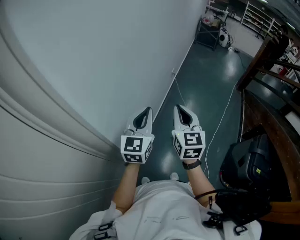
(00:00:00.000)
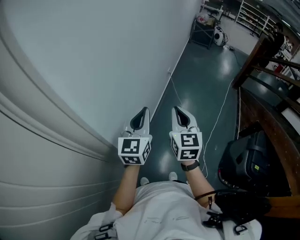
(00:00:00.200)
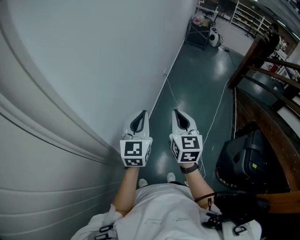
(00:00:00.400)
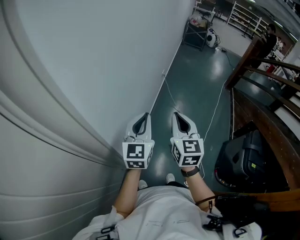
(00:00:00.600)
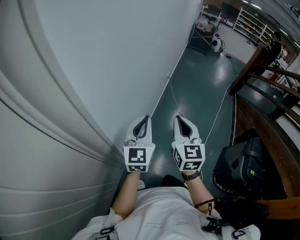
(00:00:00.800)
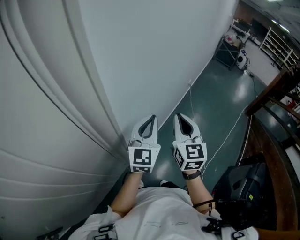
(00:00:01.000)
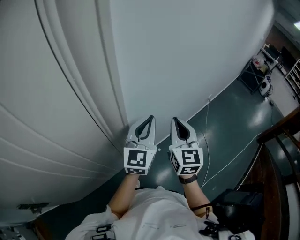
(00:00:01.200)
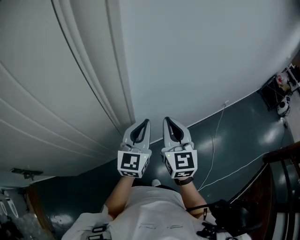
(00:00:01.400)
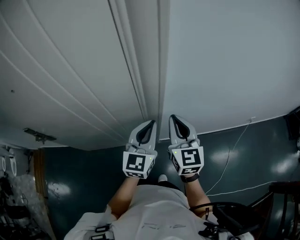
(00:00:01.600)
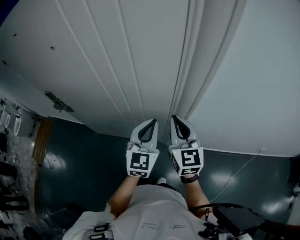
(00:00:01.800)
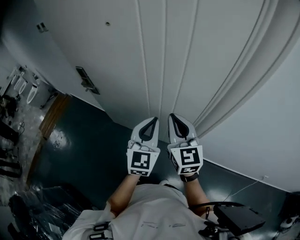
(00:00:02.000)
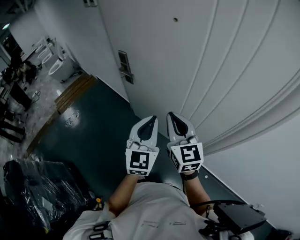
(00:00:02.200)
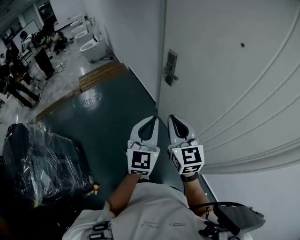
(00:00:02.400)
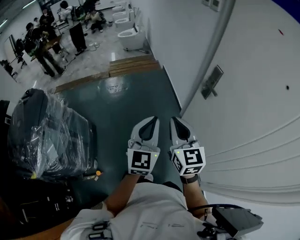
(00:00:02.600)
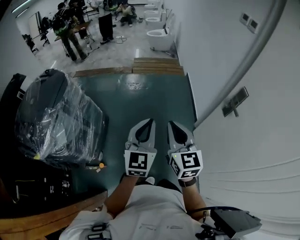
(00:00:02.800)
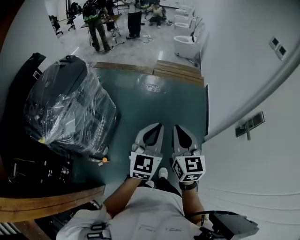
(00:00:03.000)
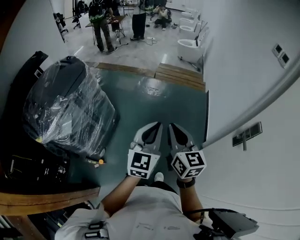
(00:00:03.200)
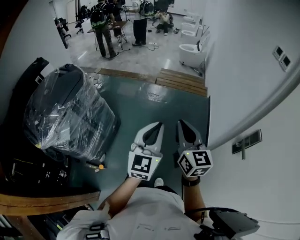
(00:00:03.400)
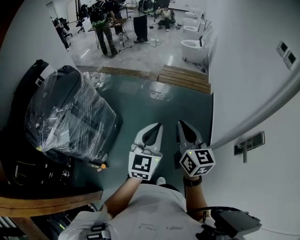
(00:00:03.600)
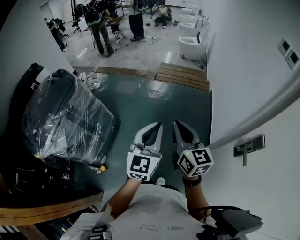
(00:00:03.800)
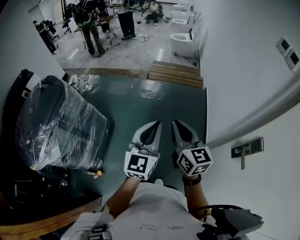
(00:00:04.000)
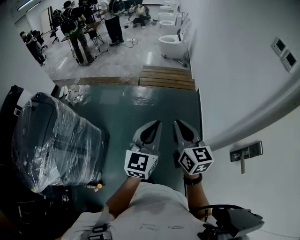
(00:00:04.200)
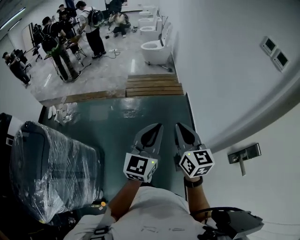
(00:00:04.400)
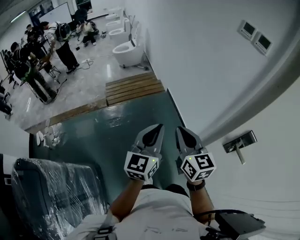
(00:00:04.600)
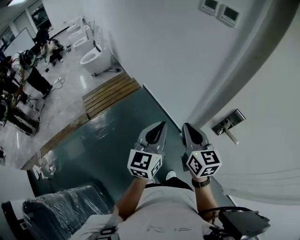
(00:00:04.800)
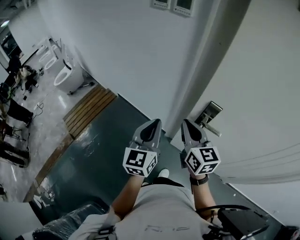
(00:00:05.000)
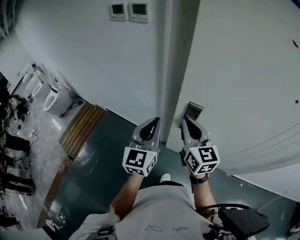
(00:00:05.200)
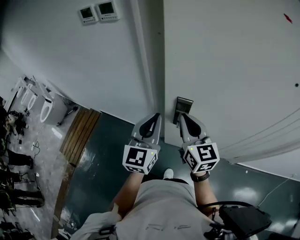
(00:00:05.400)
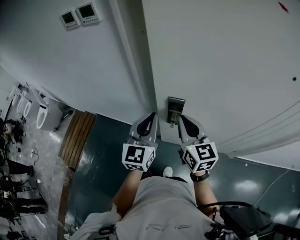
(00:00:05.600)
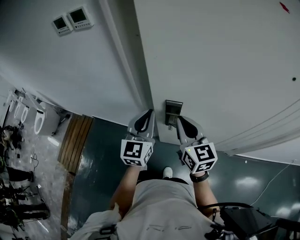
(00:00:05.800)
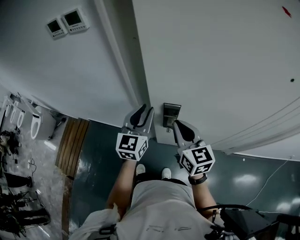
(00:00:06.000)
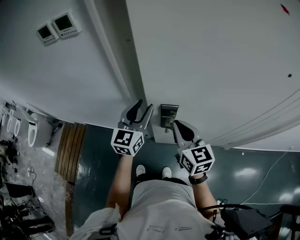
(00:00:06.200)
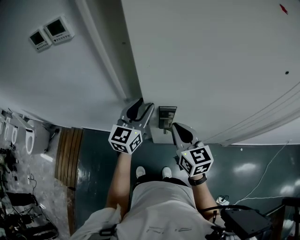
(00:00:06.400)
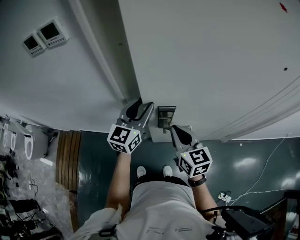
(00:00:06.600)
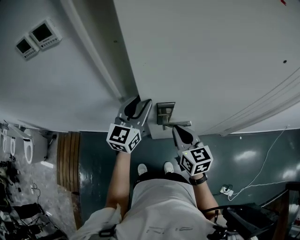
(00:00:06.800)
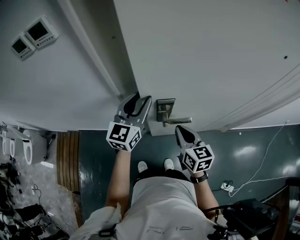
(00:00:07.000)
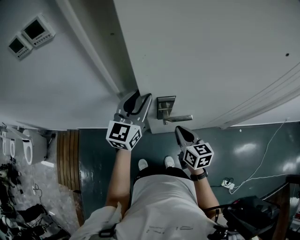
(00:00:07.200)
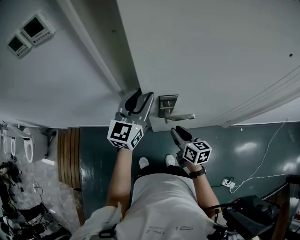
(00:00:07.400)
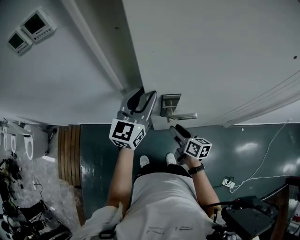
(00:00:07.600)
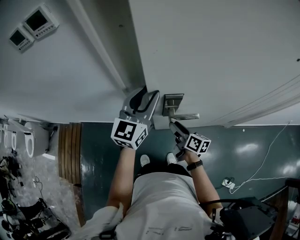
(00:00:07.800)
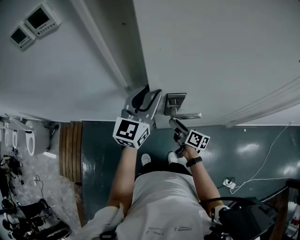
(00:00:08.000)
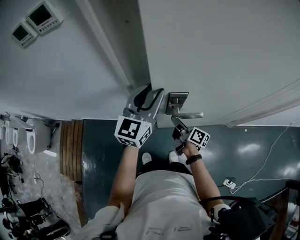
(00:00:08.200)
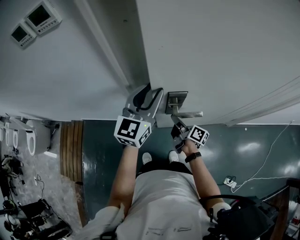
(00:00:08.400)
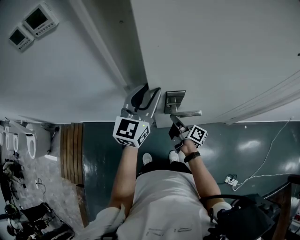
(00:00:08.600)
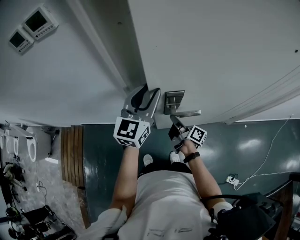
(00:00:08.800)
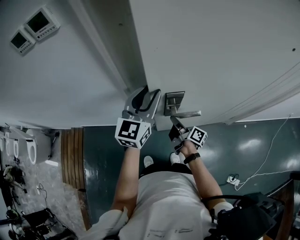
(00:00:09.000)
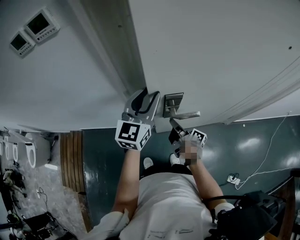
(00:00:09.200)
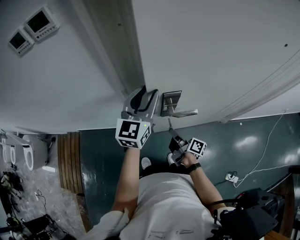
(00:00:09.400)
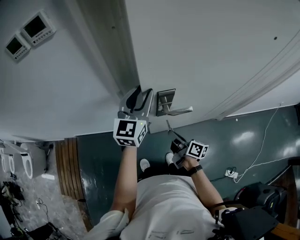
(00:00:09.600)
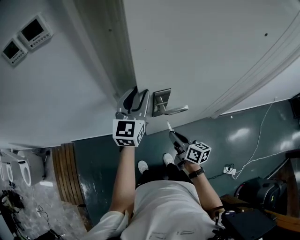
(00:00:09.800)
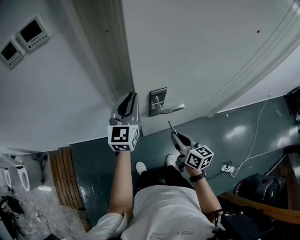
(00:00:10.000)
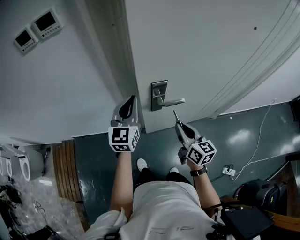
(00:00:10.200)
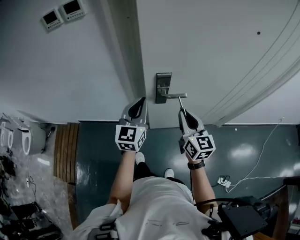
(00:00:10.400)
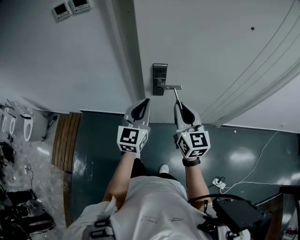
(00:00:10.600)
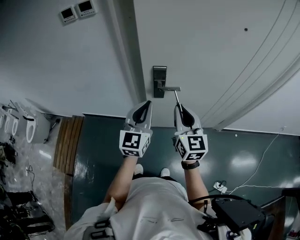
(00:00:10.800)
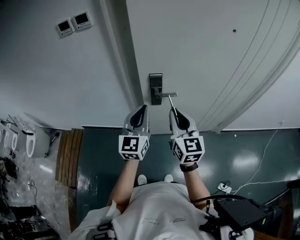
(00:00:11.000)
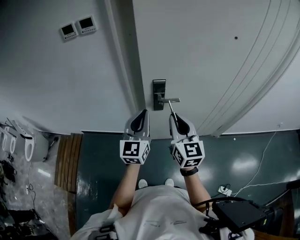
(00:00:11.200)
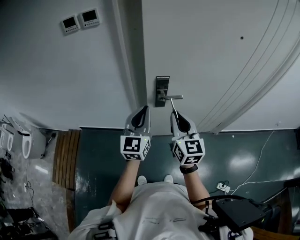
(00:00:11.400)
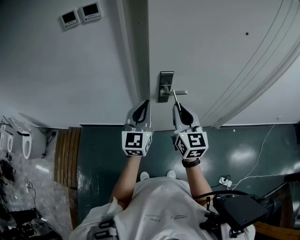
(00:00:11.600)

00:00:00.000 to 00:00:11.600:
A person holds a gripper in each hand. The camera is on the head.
00:00:00.000 to 00:00:01.400: The right gripper shifts by roughly 20 cm, and rotates about 50 degrees. Meanwhile the left gripper shifts by roughly 15 cm, and turns by approximately 40 degrees.
00:00:01.400 to 00:00:02.800: Both grippers are carried roughly 90 cm. The left gripper changes its angle by some 120 degrees, while the right gripper changes its angle by approximately 120 degrees.
00:00:02.800 to 00:00:04.400: The grippers both shift forward by approximately 35 cm.
00:00:04.400 to 00:00:05.800: The pair of grippers is taken approximately 40 cm. The left gripper swivels some 60 degrees; the right gripper rotates about 70 degrees.
00:00:05.800 to 00:00:07.200: The right gripper is displaced downward by approximately 15 cm, and rotates about 30 degrees. Meanwhile the left gripper goes roughly 10 cm forward, rotates about 20 degrees, and opens its fingers.
00:00:07.200 to 00:00:08.800: The right gripper shifts about 10 cm downward and forward, twists approximately 60 degrees clockwise, seen from behind, and opens, then closes again.
00:00:08.800 to 00:00:10.200: The right gripper is displaced upward and backward by approximately 20 cm, and rolls counterclockwise, seen from behind, by roughly 50 degrees. Meanwhile the left gripper goes about 5 cm backward, and closes.
00:00:10.200 to 00:00:11.600: The left gripper heads backward and upward, covering some 15 cm; the right gripper heads upward, covering roughly 15 cm, and rotates approximately 20 degrees.

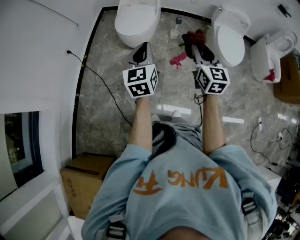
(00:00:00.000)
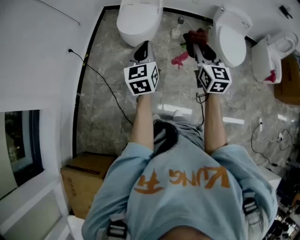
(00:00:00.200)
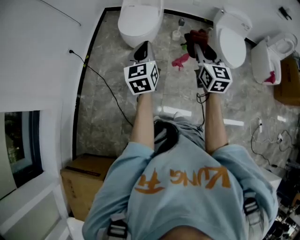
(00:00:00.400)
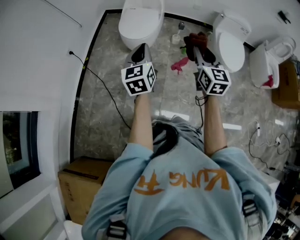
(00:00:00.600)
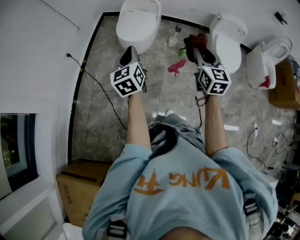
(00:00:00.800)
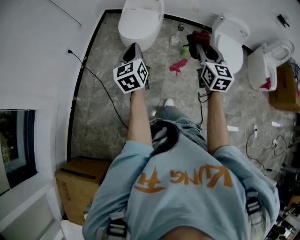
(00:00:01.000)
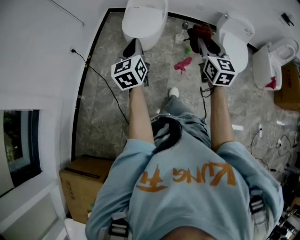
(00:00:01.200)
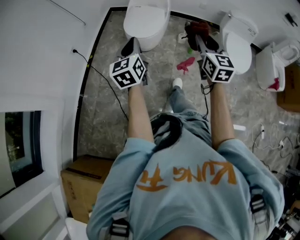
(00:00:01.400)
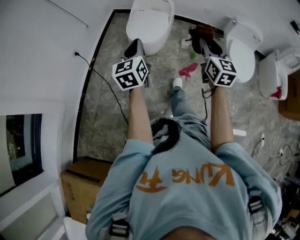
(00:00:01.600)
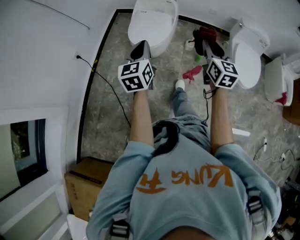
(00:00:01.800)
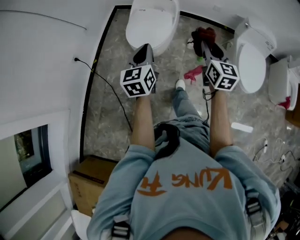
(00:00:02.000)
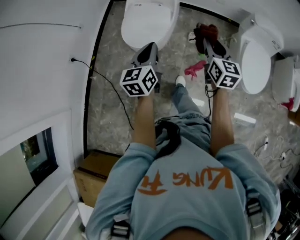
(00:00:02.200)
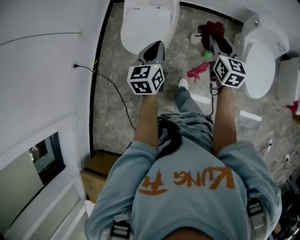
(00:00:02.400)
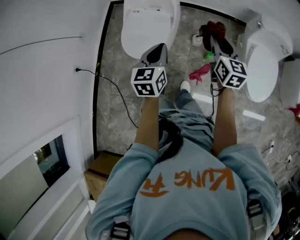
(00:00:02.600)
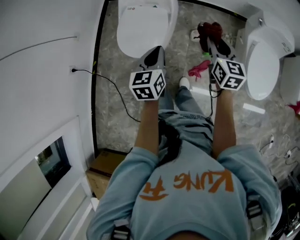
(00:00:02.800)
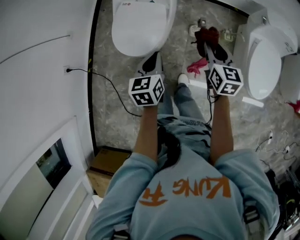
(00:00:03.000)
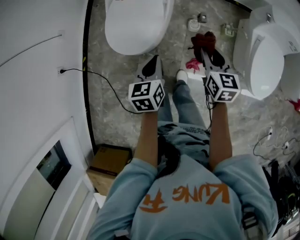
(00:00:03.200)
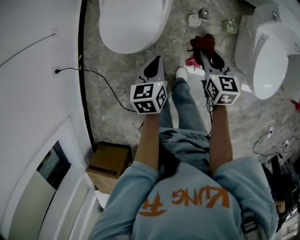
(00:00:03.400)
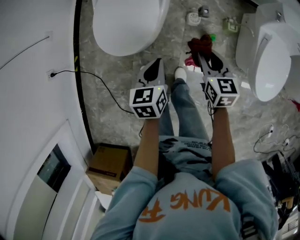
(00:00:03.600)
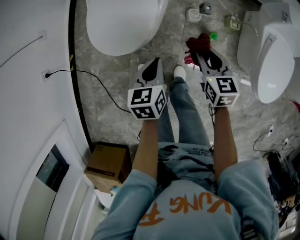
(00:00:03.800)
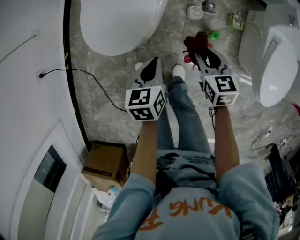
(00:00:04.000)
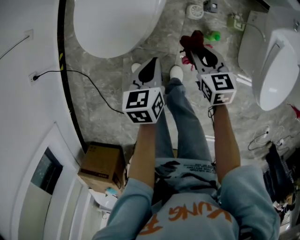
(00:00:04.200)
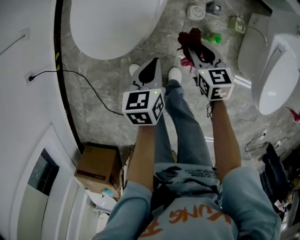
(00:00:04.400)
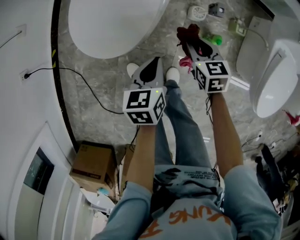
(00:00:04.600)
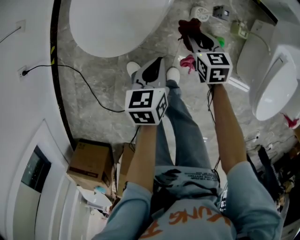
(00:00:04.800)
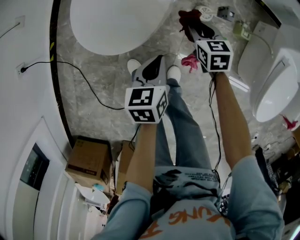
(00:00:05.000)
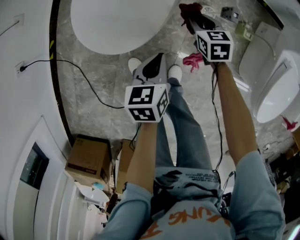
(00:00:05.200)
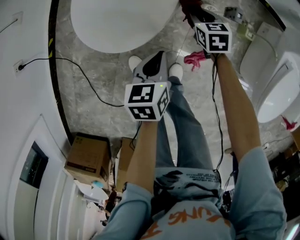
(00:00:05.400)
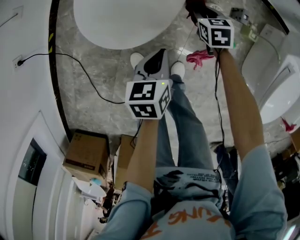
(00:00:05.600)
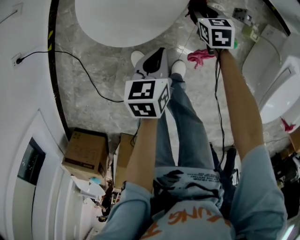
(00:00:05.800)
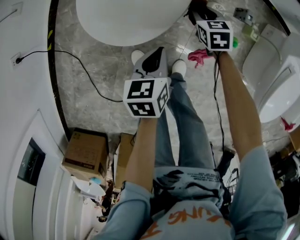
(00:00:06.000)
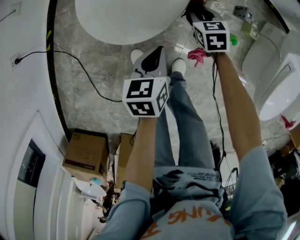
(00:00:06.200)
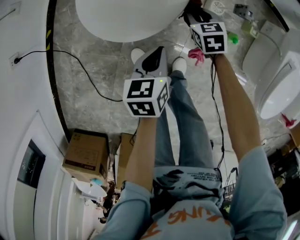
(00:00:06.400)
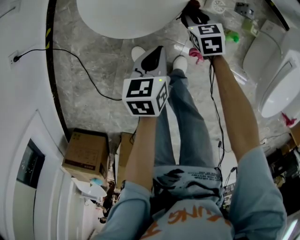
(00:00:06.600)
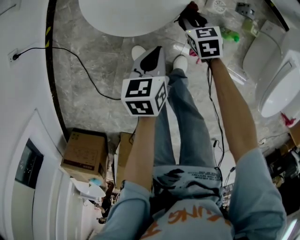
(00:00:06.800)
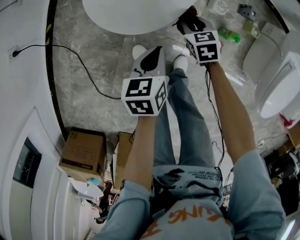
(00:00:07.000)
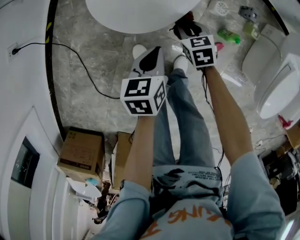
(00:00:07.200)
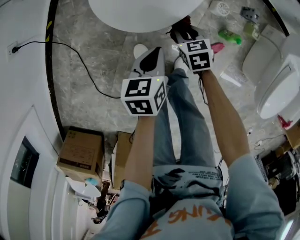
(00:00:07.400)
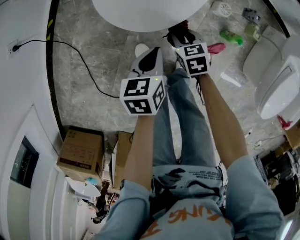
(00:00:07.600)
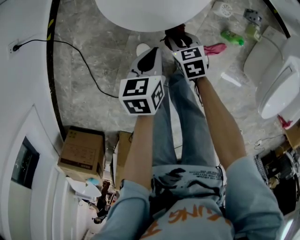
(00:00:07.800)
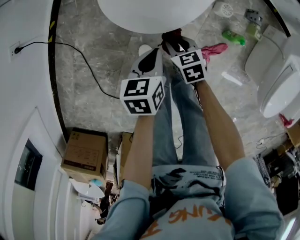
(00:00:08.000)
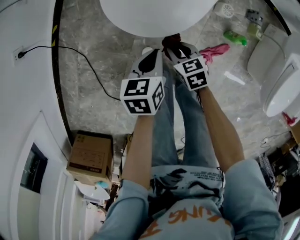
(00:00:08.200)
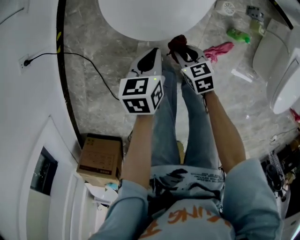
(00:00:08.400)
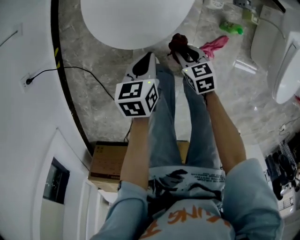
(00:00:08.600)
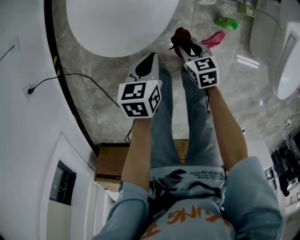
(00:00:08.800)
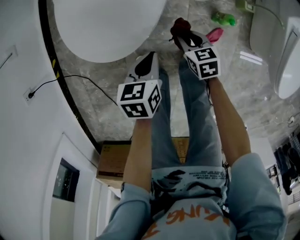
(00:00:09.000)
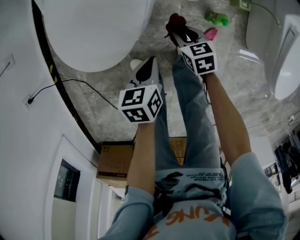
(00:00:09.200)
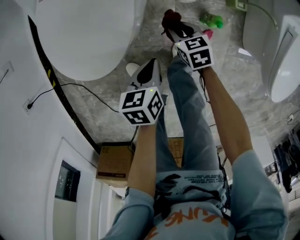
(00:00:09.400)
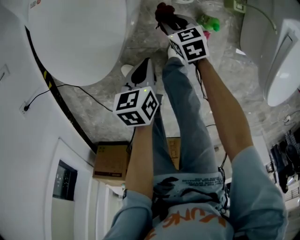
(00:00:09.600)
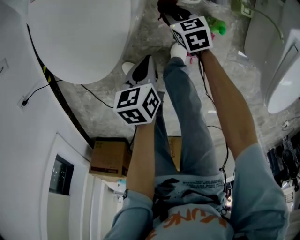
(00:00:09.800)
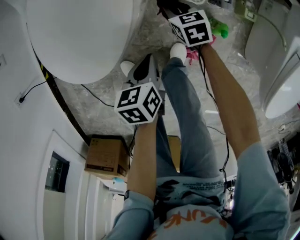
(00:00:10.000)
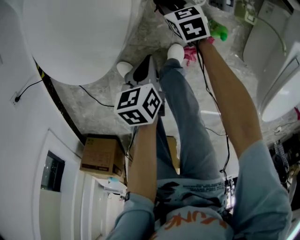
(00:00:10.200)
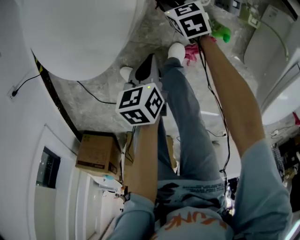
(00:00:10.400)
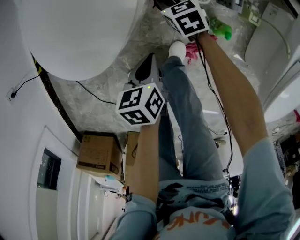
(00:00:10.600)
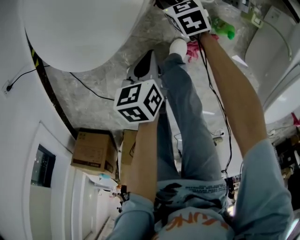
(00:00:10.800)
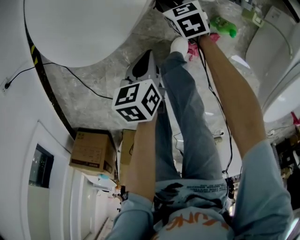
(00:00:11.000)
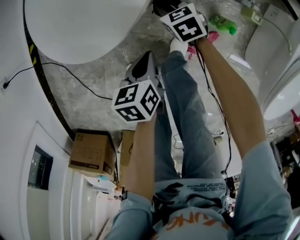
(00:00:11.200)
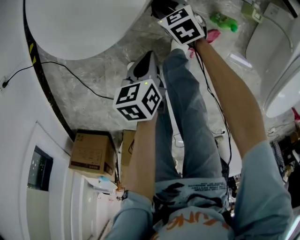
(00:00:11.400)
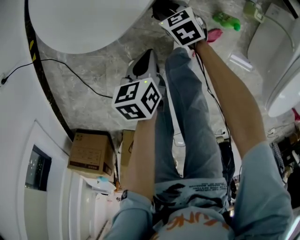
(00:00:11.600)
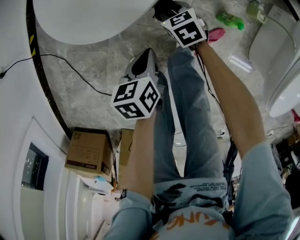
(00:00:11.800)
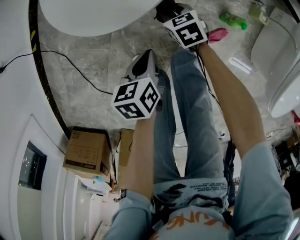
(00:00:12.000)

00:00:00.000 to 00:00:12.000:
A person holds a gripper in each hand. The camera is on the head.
00:00:00.000 to 00:00:01.600: The left gripper heads forward and to the left, covering about 15 cm. The right gripper moves forward, approximately 10 cm.
00:00:01.600 to 00:00:03.000: The right gripper travels forward and downward by about 40 cm, and swivels roughly 20 degrees; the left gripper heads forward, downward and to the right, covering roughly 40 cm, and turns by about 30 degrees.
00:00:03.000 to 00:00:04.400: The grippers both shift downward by about 30 cm. The right gripper changes its angle by approximately 20 degrees.
00:00:04.400 to 00:00:06.000: The right gripper travels downward, forward and to the left by about 20 cm. Meanwhile the left gripper heads to the left and downward, covering some 10 cm.
00:00:06.000 to 00:00:07.600: The right gripper shifts roughly 20 cm backward and to the left. Meanwhile the left gripper heads to the left, covering some 5 cm.
00:00:07.600 to 00:00:09.000: The grippers both shift to the right by some 10 cm. The right gripper turns by roughly 20 degrees.
00:00:09.000 to 00:00:10.400: The left gripper is displaced to the right and downward by some 10 cm, and rotates roughly 20 degrees. The right gripper travels forward and downward by some 20 cm.
00:00:10.400 to 00:00:12.000: Both grippers move to the left and backward, some 20 cm.
